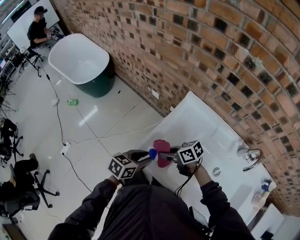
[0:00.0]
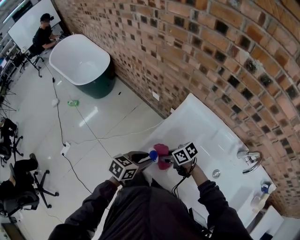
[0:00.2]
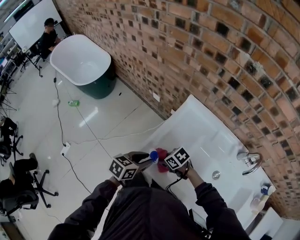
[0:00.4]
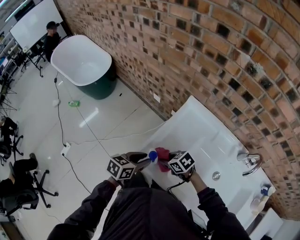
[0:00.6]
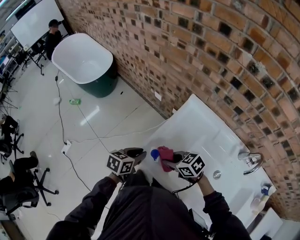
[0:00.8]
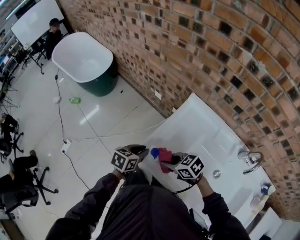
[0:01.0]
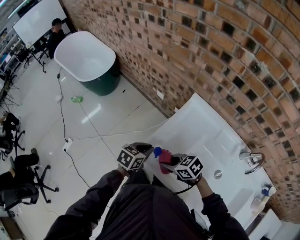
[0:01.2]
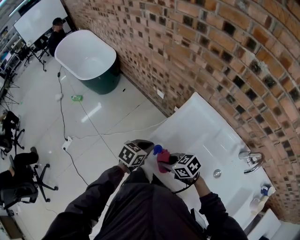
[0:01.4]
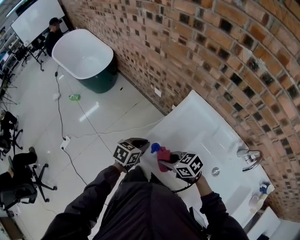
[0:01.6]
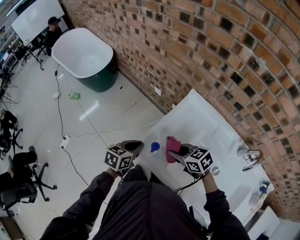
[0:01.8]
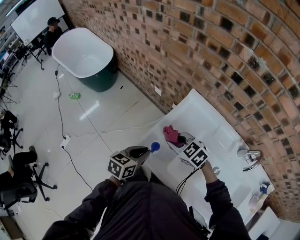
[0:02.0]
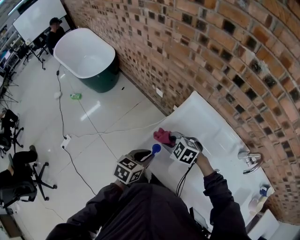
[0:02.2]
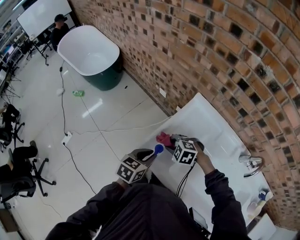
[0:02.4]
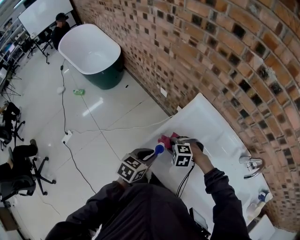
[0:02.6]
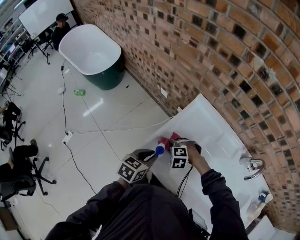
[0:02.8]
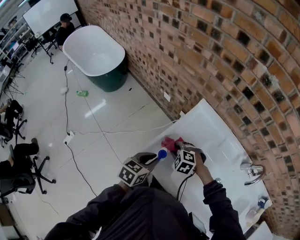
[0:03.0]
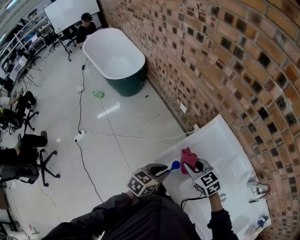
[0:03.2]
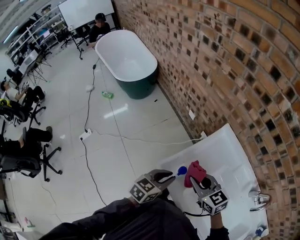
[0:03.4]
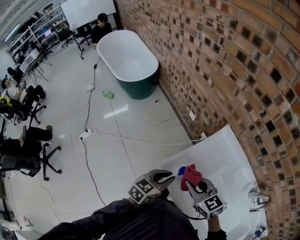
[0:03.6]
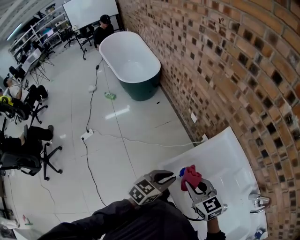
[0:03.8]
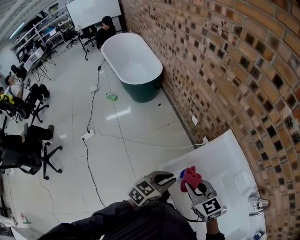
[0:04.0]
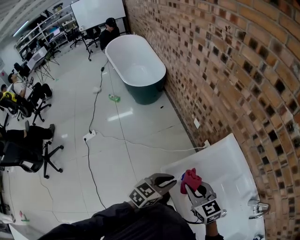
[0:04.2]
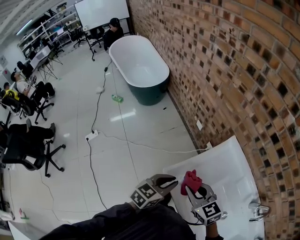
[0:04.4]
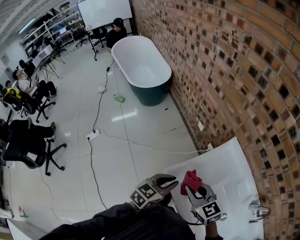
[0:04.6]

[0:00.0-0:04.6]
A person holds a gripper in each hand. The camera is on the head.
0:00.0 to 0:01.6: The left gripper shifts by some 5 cm, and closes its fingers, while the right gripper reaches some 10 cm downward, then returns, and turns by roughly 20 degrees.
0:01.6 to 0:03.0: The right gripper shifts by about 10 cm, and rolls counterclockwise, seen from behind, by approximately 40 degrees, while the left gripper changes place by approximately 5 cm.
0:03.0 to 0:04.6: The left gripper shifts some 5 cm upward. Meanwhile the right gripper moves upward, approximately 20 cm, and points its fingers some 30 degrees further upward.

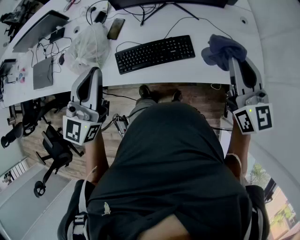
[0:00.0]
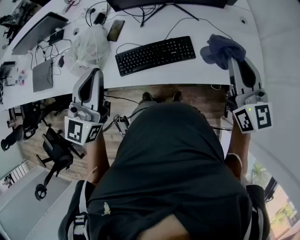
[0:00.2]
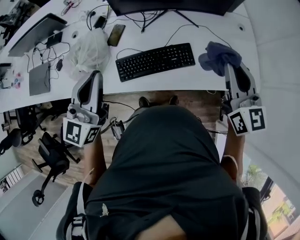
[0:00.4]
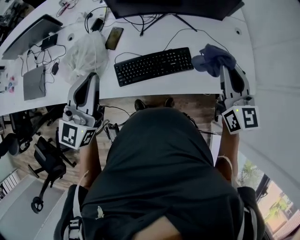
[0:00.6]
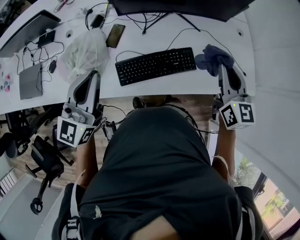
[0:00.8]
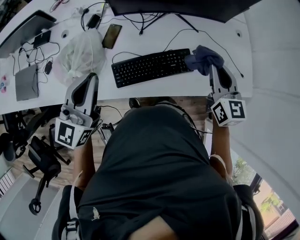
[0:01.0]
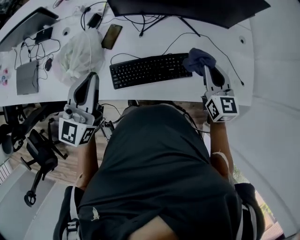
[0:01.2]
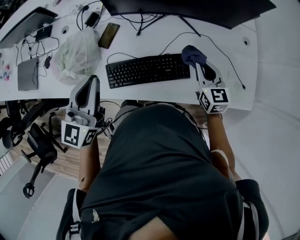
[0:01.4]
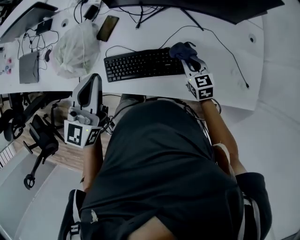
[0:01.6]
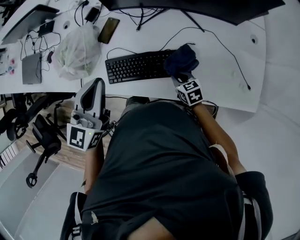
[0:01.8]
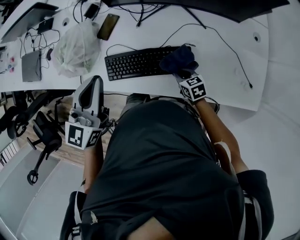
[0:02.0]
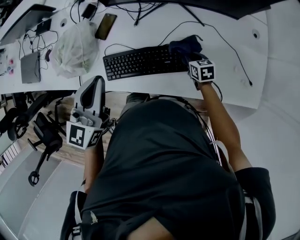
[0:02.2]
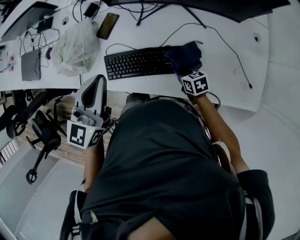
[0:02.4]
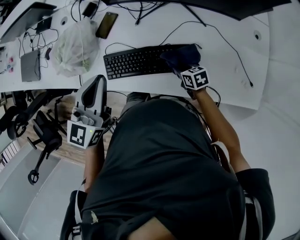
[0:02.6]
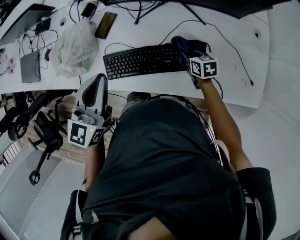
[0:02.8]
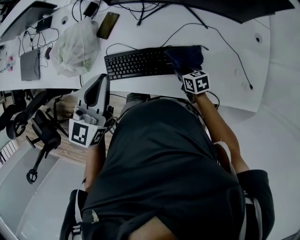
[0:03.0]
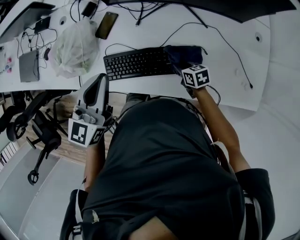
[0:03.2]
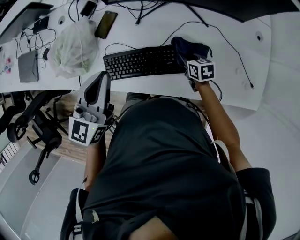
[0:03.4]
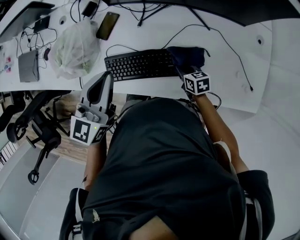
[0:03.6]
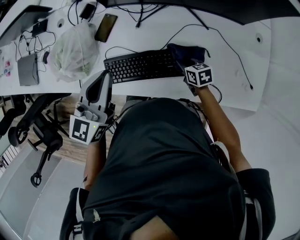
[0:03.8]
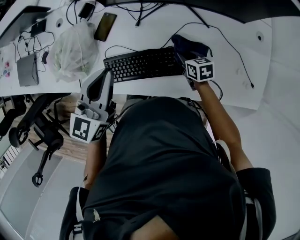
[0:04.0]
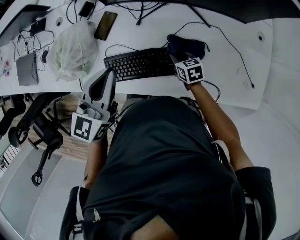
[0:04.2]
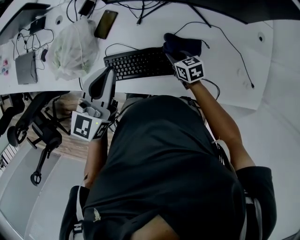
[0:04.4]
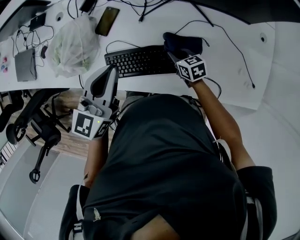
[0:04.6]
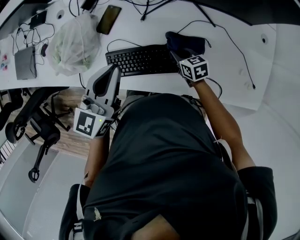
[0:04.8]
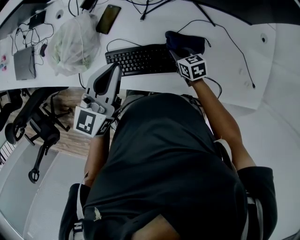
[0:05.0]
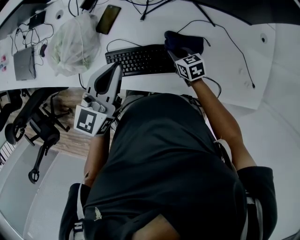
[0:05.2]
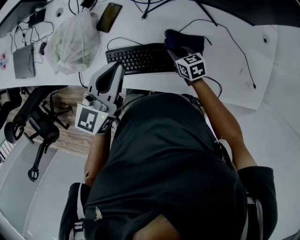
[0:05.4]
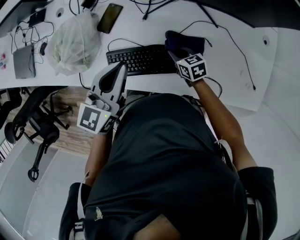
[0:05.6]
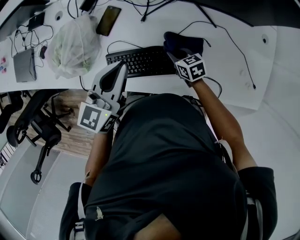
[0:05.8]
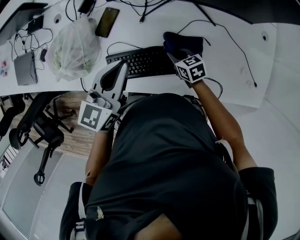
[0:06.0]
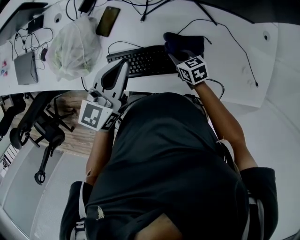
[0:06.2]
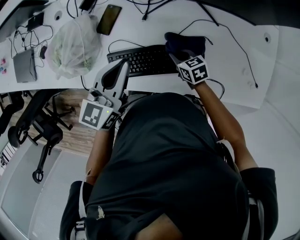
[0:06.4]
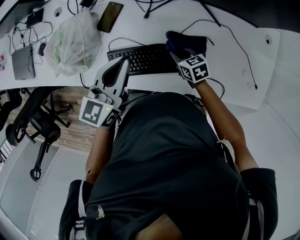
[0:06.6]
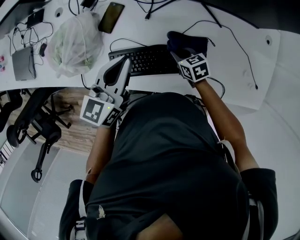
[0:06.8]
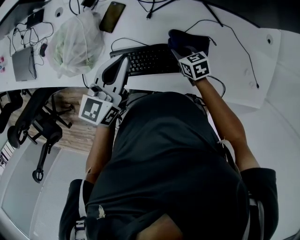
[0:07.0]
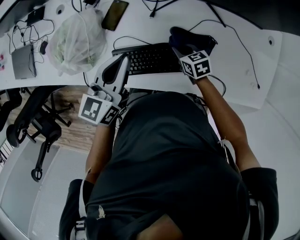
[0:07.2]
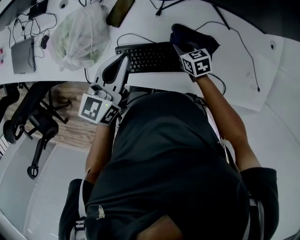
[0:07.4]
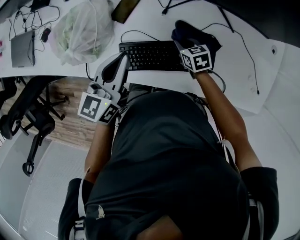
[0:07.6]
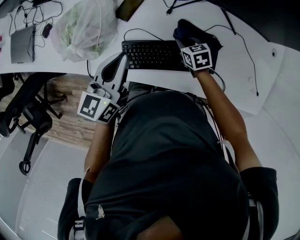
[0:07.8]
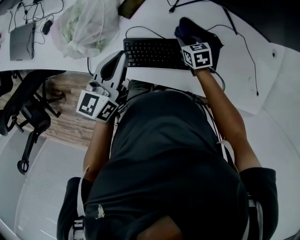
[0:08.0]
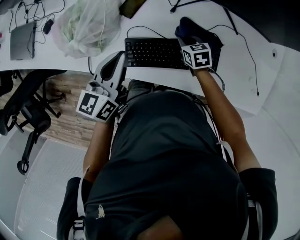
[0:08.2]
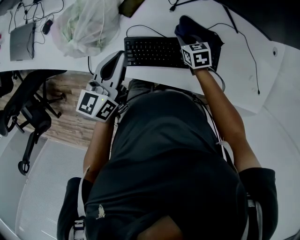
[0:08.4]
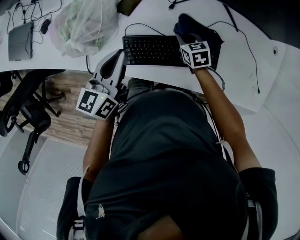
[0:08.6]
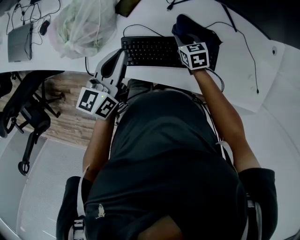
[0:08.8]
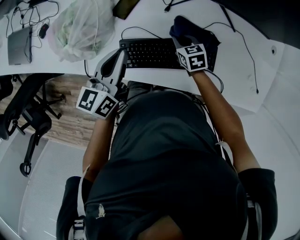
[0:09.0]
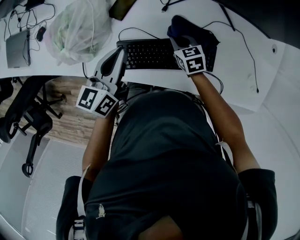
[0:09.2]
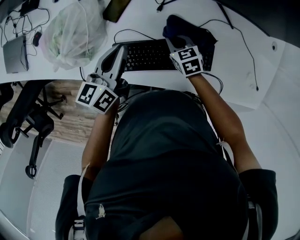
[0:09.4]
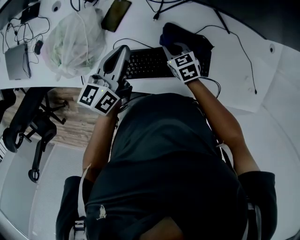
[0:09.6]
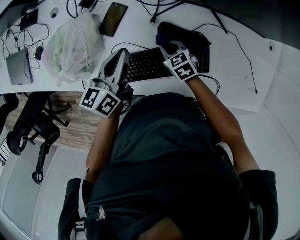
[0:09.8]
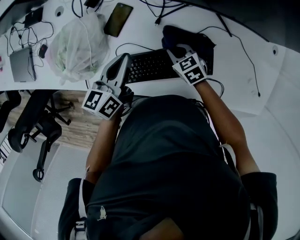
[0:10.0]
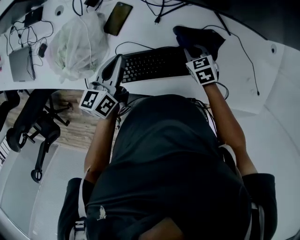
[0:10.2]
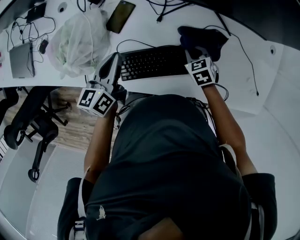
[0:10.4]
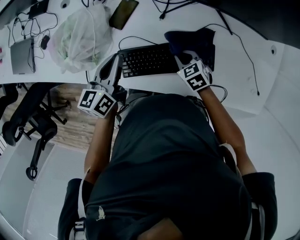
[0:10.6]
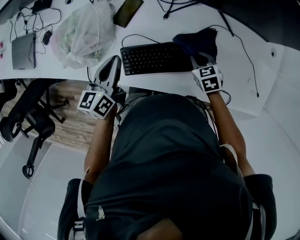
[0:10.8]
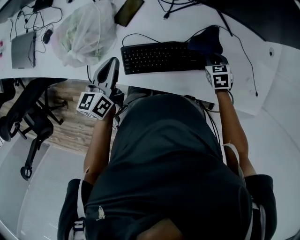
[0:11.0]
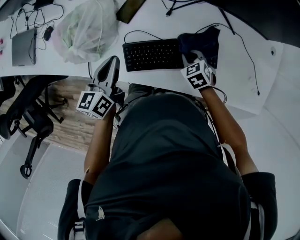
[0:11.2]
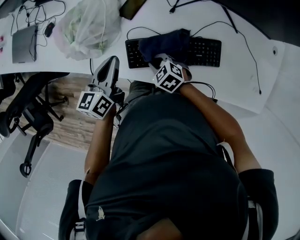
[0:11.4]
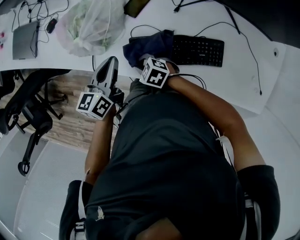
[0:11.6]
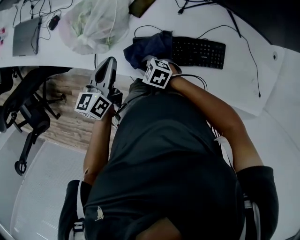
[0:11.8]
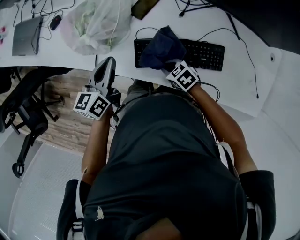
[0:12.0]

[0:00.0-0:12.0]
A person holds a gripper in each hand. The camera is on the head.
0:00.0 to 0:01.6: The left gripper is displaced forward and downward by some 15 cm, while the right gripper moves downward and forward, some 35 cm, and angles its fingers downward, by some 30 degrees.
0:01.6 to 0:03.0: The right gripper goes roughly 10 cm downward, and swivels approximately 30 degrees.
0:03.0 to 0:04.4: The left gripper changes place by approximately 5 cm, while the right gripper goes forward and backward, some 10 cm each way, reversing 2 times.
0:04.4 to 0:06.0: The grippers make only small movements.
0:06.0 to 0:07.6: The left gripper is displaced to the left by about 10 cm. The right gripper shifts by roughly 5 cm.
0:07.6 to 0:09.0: The grippers stay close to where they were, moving slightly.
0:09.0 to 0:10.4: The right gripper goes about 10 cm to the right.
0:10.4 to 0:12.0: The right gripper moves approximately 25 cm, and rotates some 30 degrees, while the left gripper ends up about 15 cm from where it was.

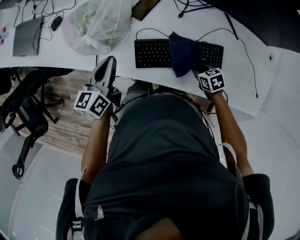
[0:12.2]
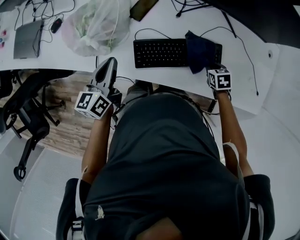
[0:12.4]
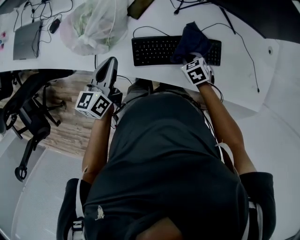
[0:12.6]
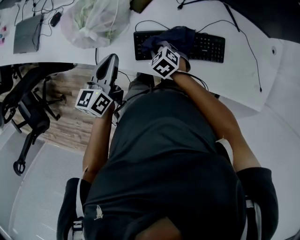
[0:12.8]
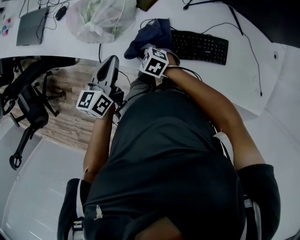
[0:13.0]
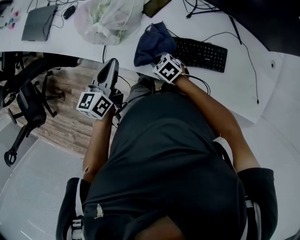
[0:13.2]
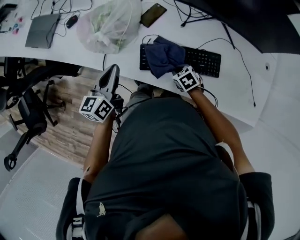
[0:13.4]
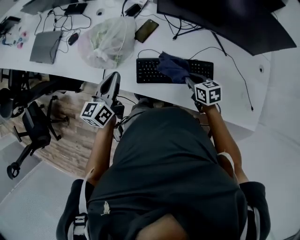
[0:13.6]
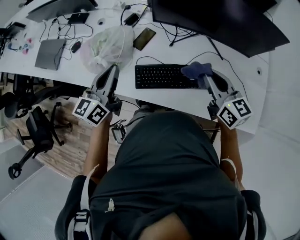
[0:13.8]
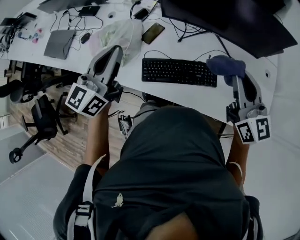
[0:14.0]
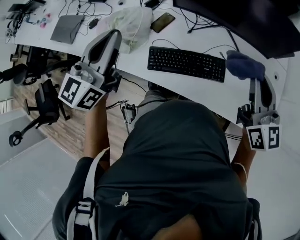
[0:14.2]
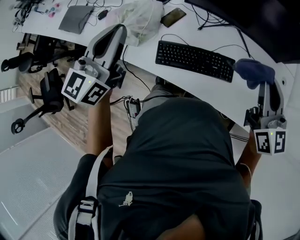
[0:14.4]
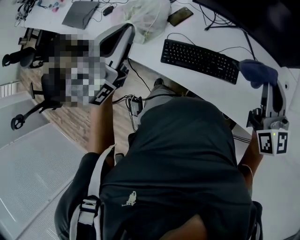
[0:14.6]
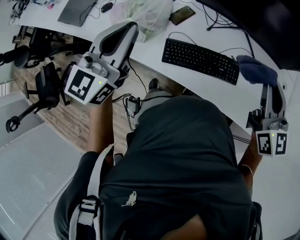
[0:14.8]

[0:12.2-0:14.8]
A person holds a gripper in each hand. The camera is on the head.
0:12.2 to 0:13.4: The left gripper ends up some 5 cm from where it was.
0:13.4 to 0:14.8: The left gripper goes about 25 cm upward, and rotates roughly 40 degrees; the right gripper moves upward, roughly 40 cm, and angles its fingers upward, by some 60 degrees.

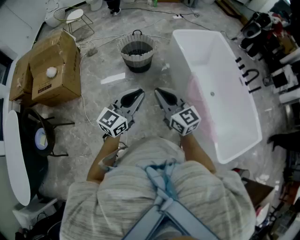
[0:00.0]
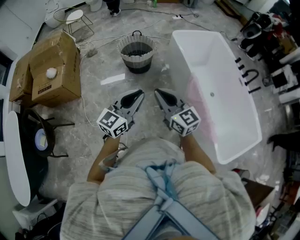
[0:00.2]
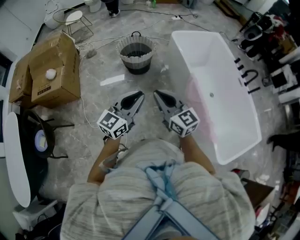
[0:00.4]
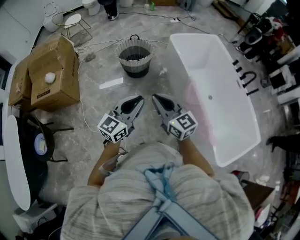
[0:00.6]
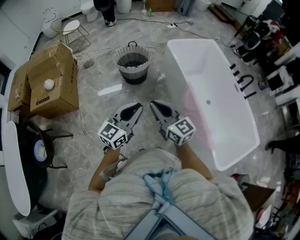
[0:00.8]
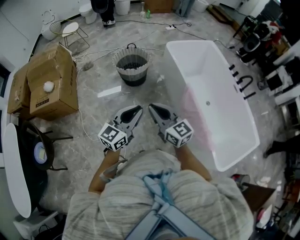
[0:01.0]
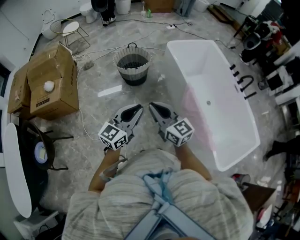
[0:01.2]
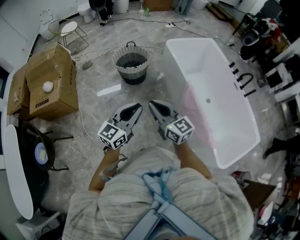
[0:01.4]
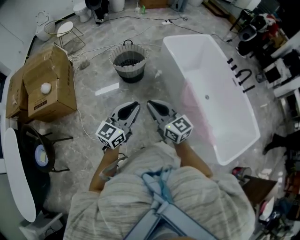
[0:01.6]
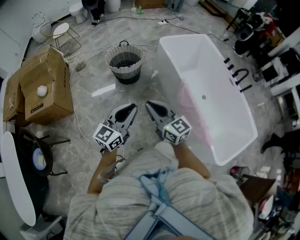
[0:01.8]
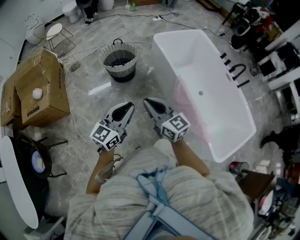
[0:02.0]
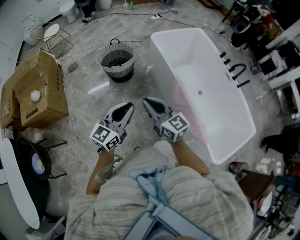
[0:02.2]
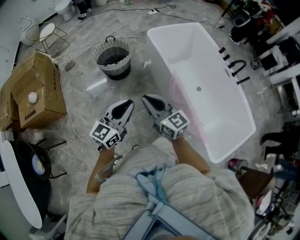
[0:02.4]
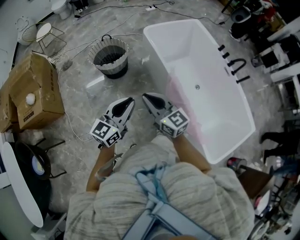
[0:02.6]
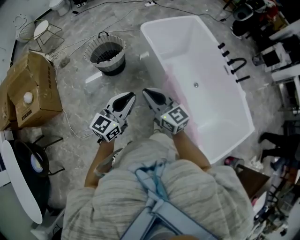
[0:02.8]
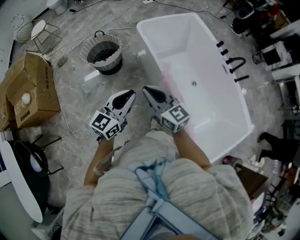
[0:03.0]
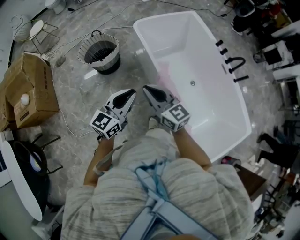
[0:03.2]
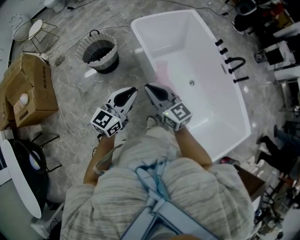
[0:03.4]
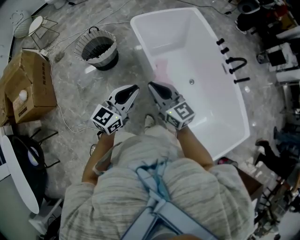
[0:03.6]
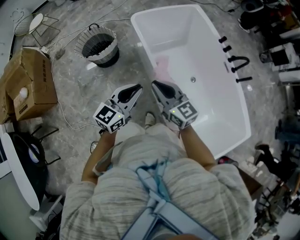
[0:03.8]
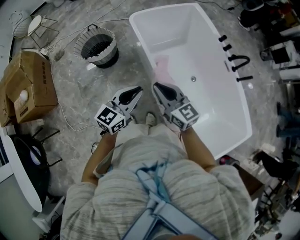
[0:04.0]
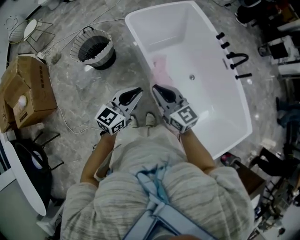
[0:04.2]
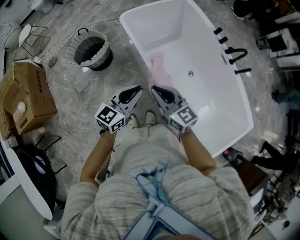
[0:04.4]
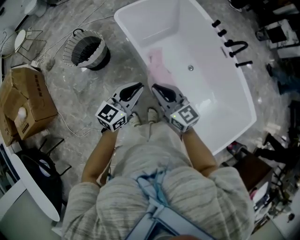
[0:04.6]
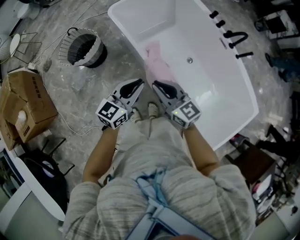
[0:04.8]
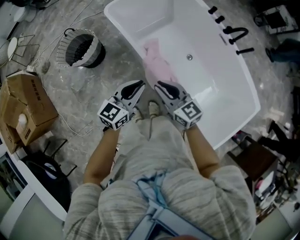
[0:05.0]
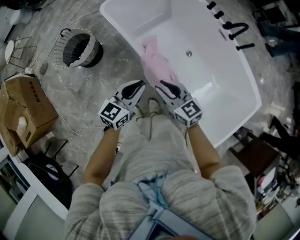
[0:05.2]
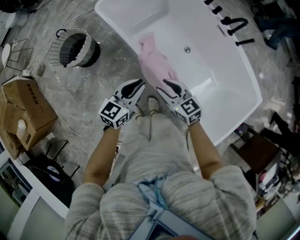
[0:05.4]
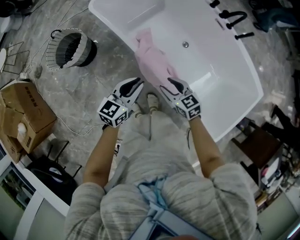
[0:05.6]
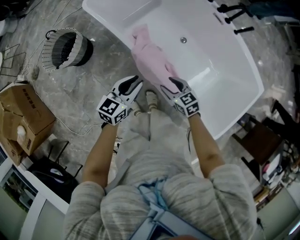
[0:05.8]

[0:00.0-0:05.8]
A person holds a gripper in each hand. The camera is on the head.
0:00.0 to 0:01.4: The grippers move only a little.
0:01.4 to 0:02.8: The grippers both shift to the right and forward by roughly 20 cm.
0:02.8 to 0:04.4: Both grippers move to the right and forward, approximately 20 cm.
0:04.4 to 0:05.8: The right gripper shifts approximately 30 cm downward and to the right, angles its fingers downward, by roughly 30 degrees, and opens up, while the left gripper moves downward and to the right, approximately 15 cm.
